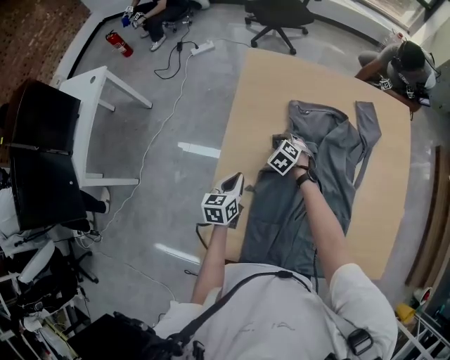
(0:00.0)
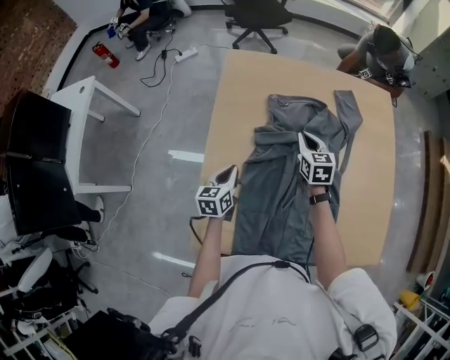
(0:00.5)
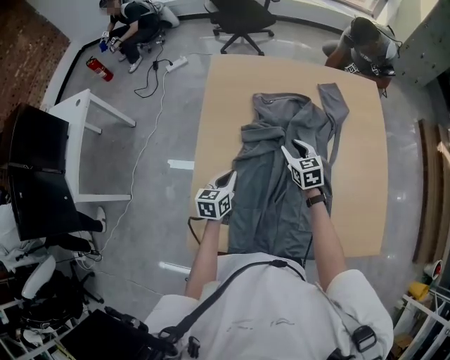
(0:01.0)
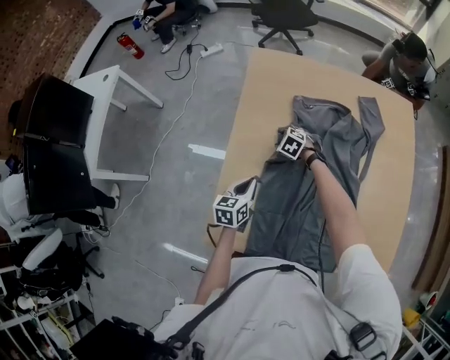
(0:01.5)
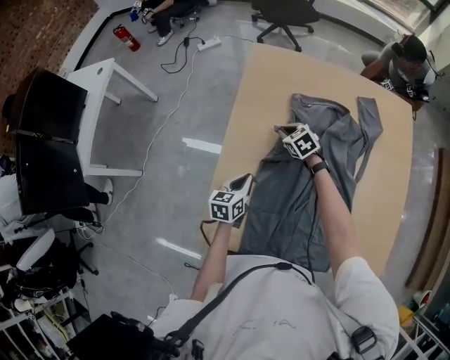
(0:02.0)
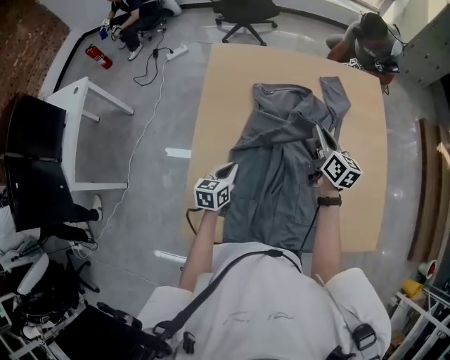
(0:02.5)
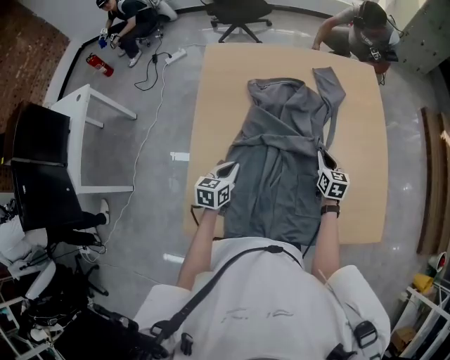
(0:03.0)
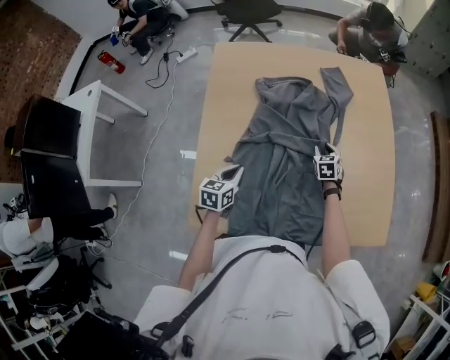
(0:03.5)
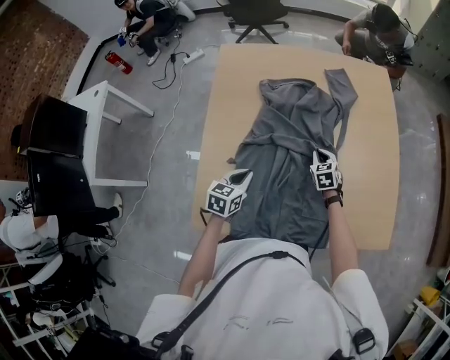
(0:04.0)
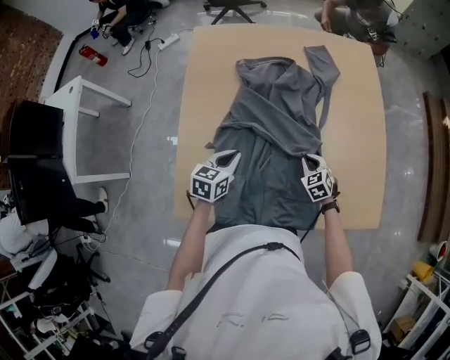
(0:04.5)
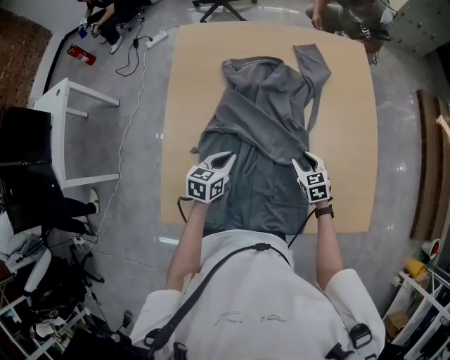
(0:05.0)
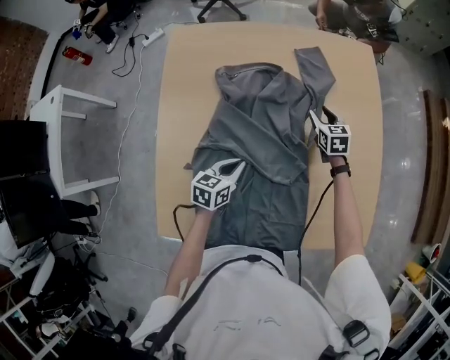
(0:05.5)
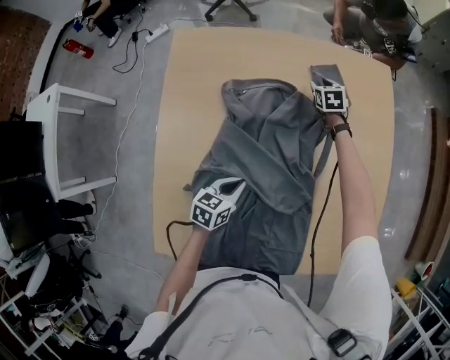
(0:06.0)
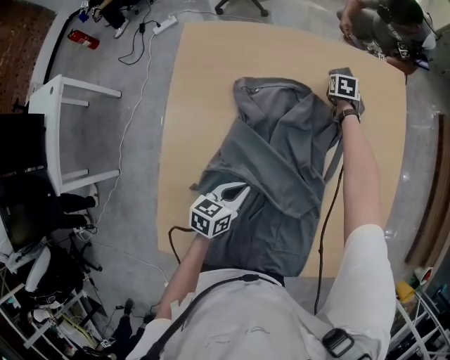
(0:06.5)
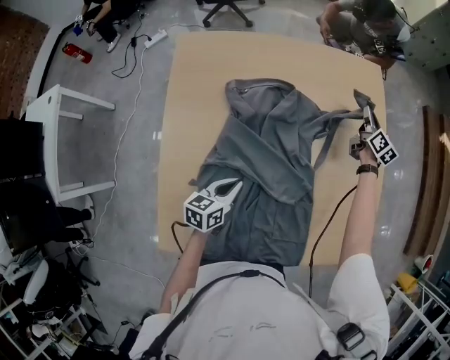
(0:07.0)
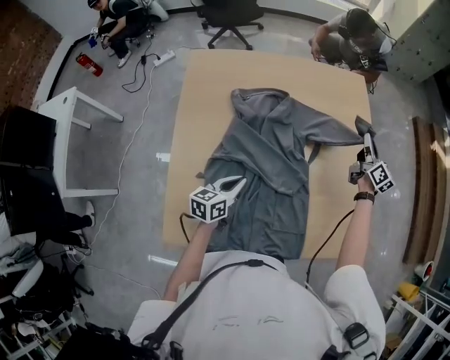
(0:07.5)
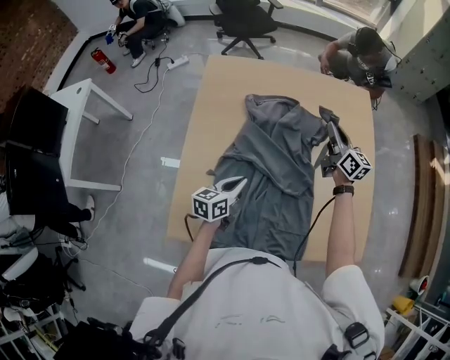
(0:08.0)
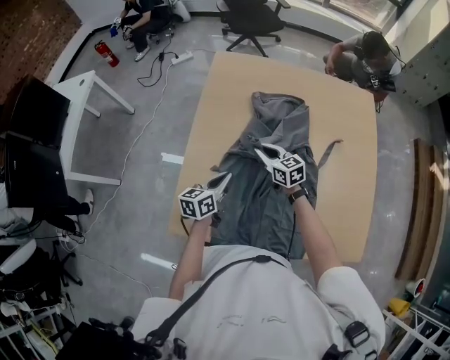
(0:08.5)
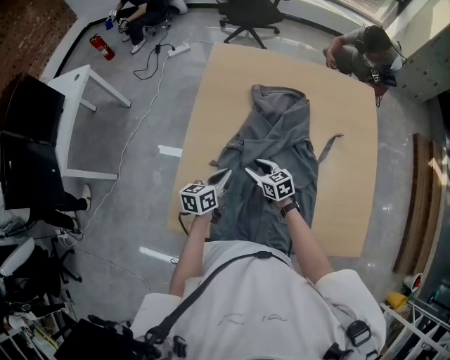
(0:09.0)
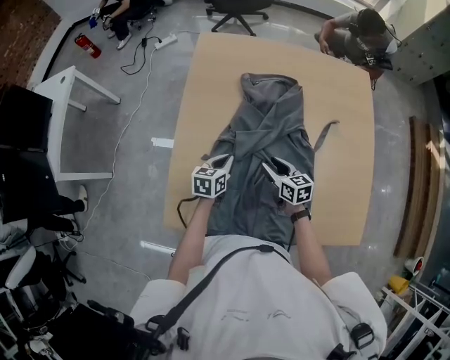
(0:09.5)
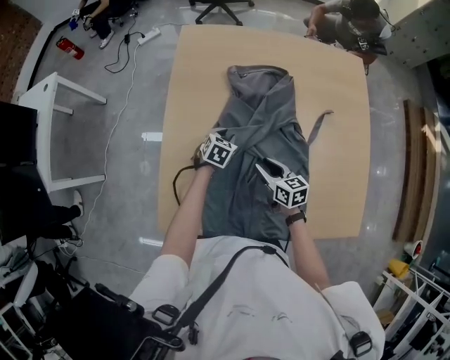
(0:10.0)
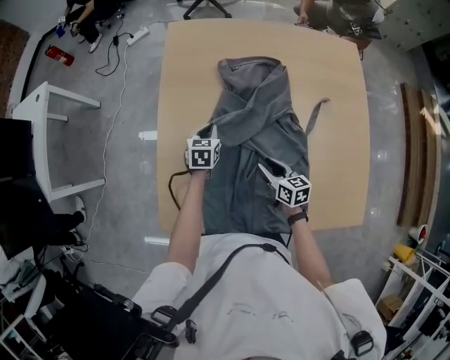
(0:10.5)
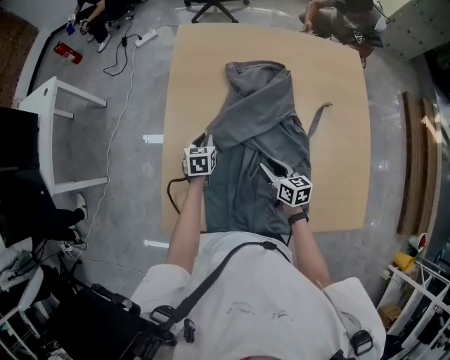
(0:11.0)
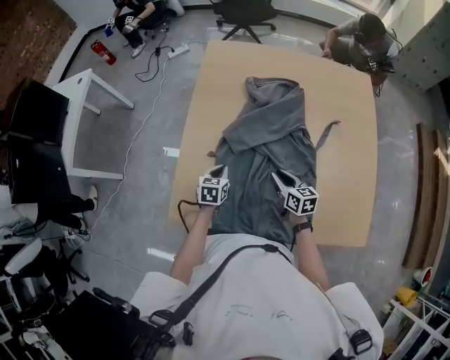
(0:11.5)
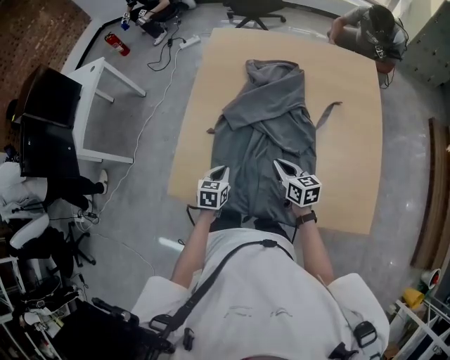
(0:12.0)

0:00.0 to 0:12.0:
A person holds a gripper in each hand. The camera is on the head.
0:00.0 to 0:02.0: The right gripper moves up and down over roughly 20 cm, changing direction 2 times, turns by roughly 20 degrees, and closes.
0:02.0 to 0:04.0: The left gripper shifts by roughly 15 cm, and turns by some 20 degrees, while the right gripper moves some 20 cm upward and comes back, and turns by approximately 30 degrees.
0:04.0 to 0:06.0: The right gripper heads forward, covering roughly 35 cm, and opens. The left gripper moves forward, to the right and downward, roughly 15 cm.
0:06.0 to 0:08.0: The right gripper travels upward and backward by approximately 35 cm, tips its fingers upward by approximately 50 degrees, and closes, while the left gripper moves upward and backward, roughly 15 cm, and swivels approximately 20 degrees.
0:08.0 to 0:10.0: The left gripper moves downward and forward, about 20 cm, angles its fingers downward, by about 30 degrees, and opens up. Meanwhile the right gripper heads downward, backward and to the left, covering some 35 cm, swivels about 40 degrees, and opens its fingers.
0:10.0 to 0:12.0: The right gripper heads backward, covering roughly 10 cm, and closes; the left gripper is displaced backward by approximately 25 cm, changes its angle by some 30 degrees, and closes up.

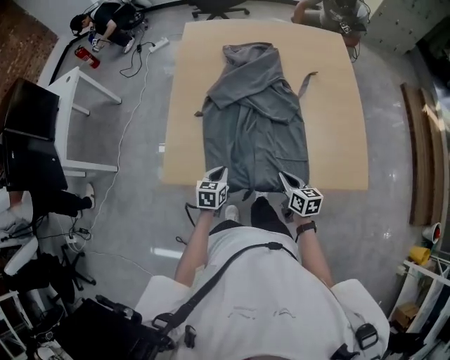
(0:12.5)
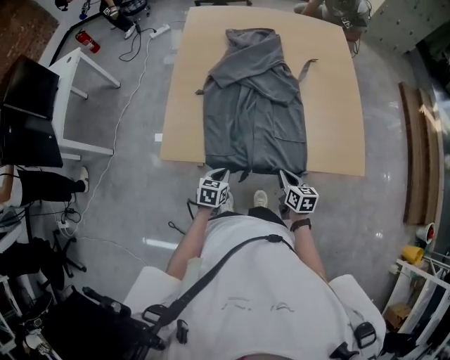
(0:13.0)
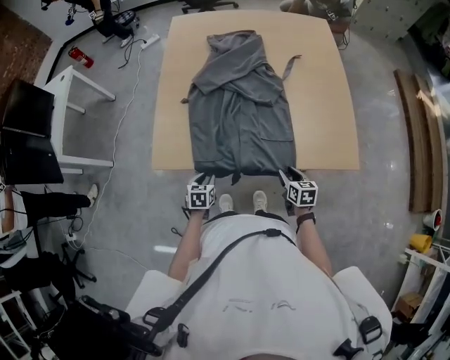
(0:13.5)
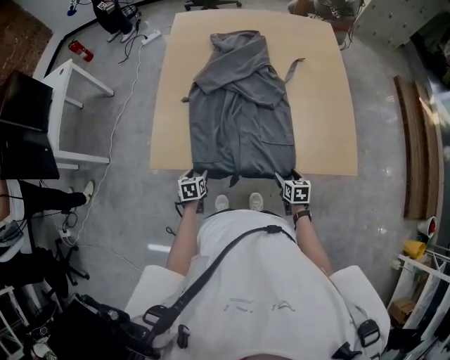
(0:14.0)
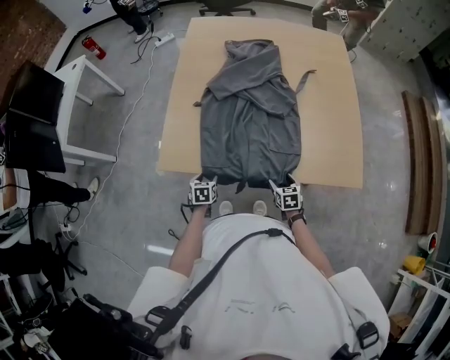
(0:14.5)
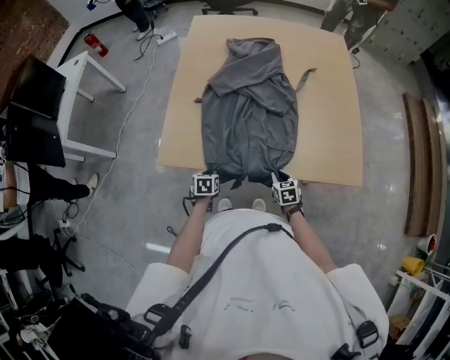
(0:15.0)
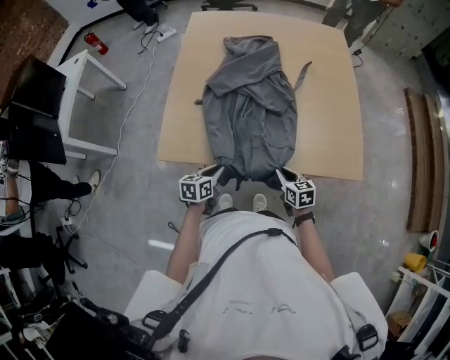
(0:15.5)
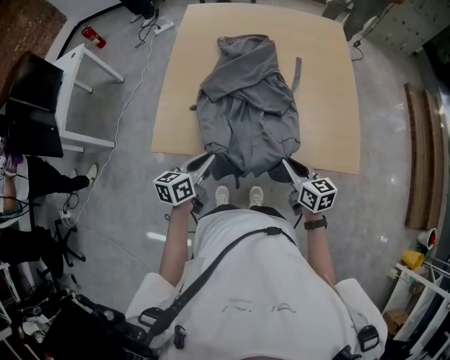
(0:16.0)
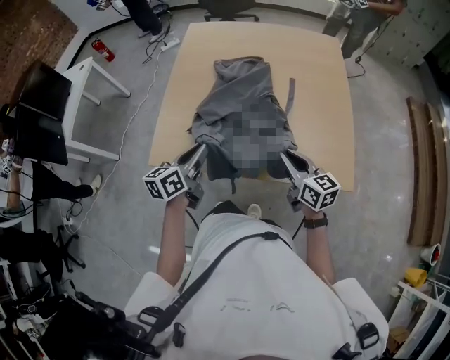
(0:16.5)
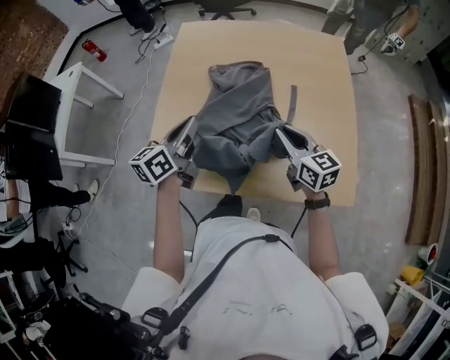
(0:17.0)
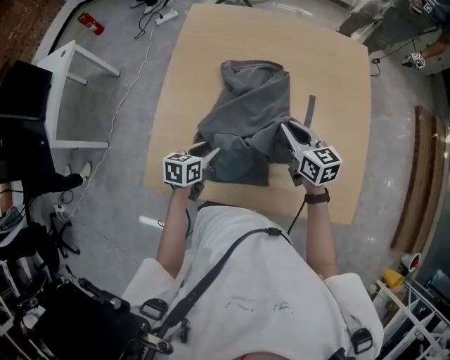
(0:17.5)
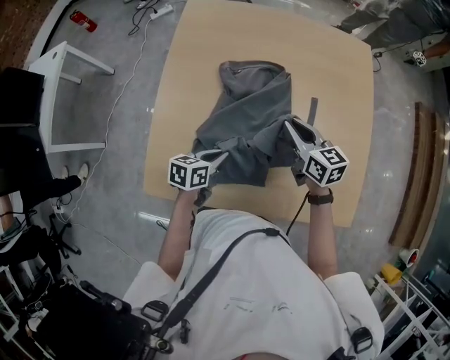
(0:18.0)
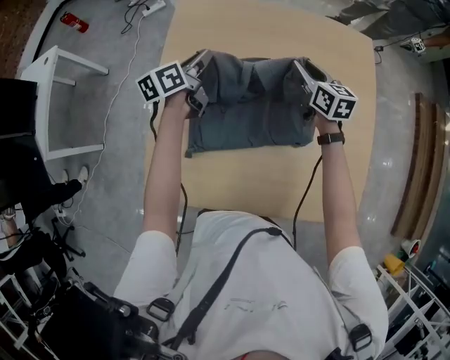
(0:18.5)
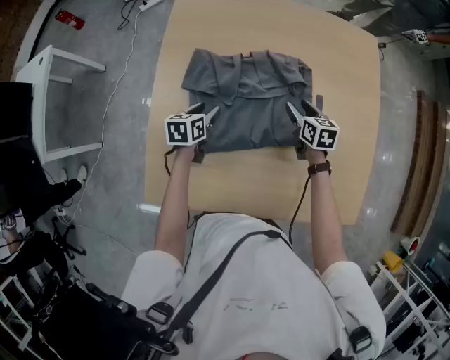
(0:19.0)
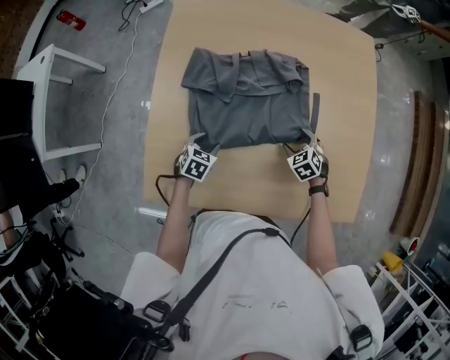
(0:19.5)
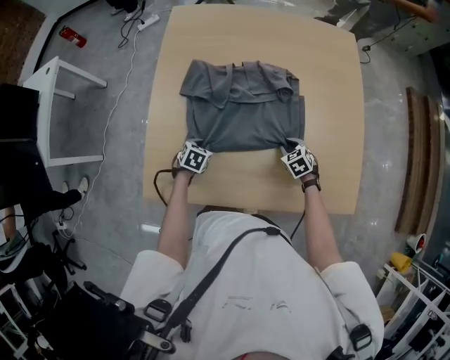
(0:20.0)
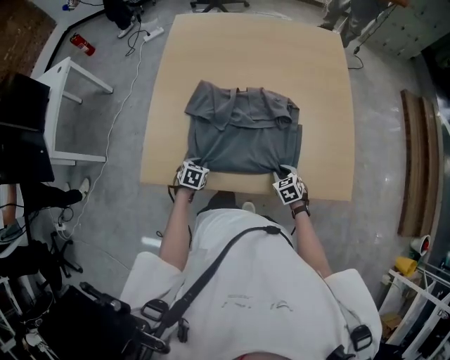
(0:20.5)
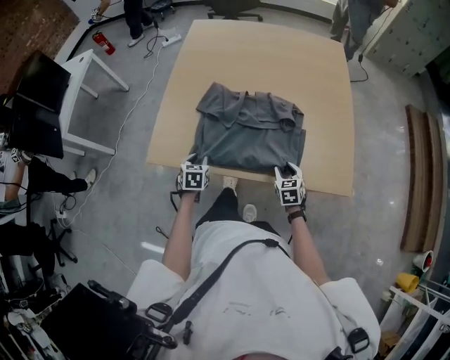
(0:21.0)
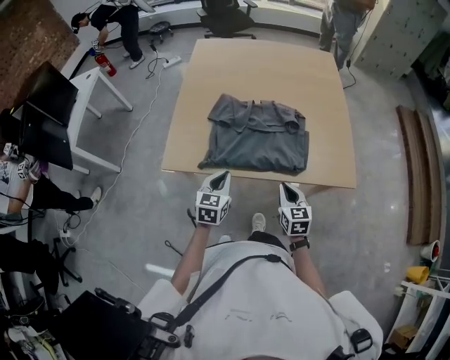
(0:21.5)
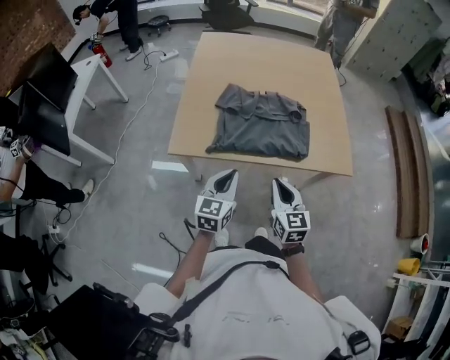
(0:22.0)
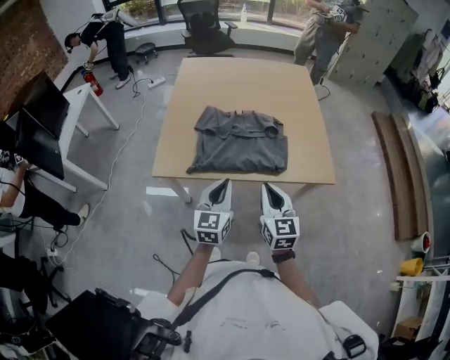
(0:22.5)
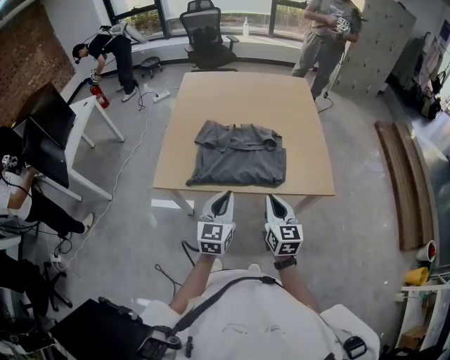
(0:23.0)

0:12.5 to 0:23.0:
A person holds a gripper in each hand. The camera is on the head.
0:12.5 to 0:14.5: The right gripper moves downward, approximately 10 cm, turns by approximately 30 degrees, and opens. Meanwhile the left gripper heads downward, backward and to the left, covering approximately 15 cm, and opens up.
0:14.5 to 0:16.5: The grippers both shift upward by some 30 cm. The left gripper tilts its fingers roughly 40 degrees upward, and closes its fingers; the right gripper tips its fingers upward by roughly 40 degrees, and closes its fingers.
0:16.5 to 0:19.0: The grippers both shift forward and downward by about 40 cm. The left gripper rotates approximately 30 degrees, and opens up; the right gripper rotates approximately 30 degrees, and opens.
0:19.0 to 0:21.0: The two grippers go approximately 35 cm backward. The left gripper rotates roughly 30 degrees, and closes its fingers. The right gripper changes its angle by approximately 20 degrees.
0:21.0 to 0:23.0: The left gripper travels upward, backward and to the right by about 35 cm, angles its fingers upward, by roughly 40 degrees, and closes up; the right gripper moves upward and backward, roughly 30 cm, points its fingers about 30 degrees further upward, and closes.

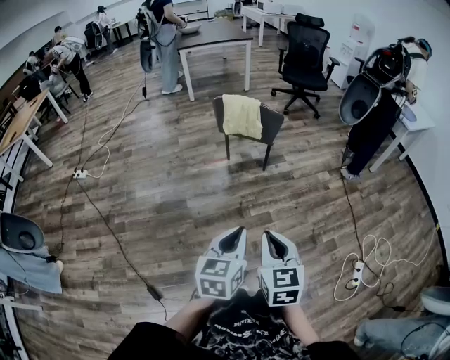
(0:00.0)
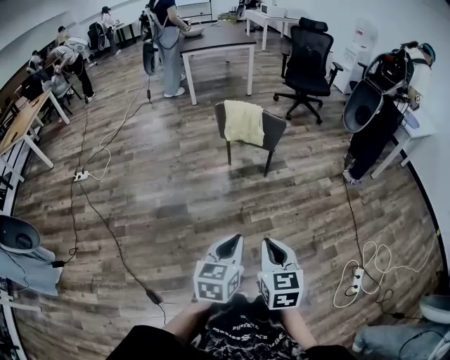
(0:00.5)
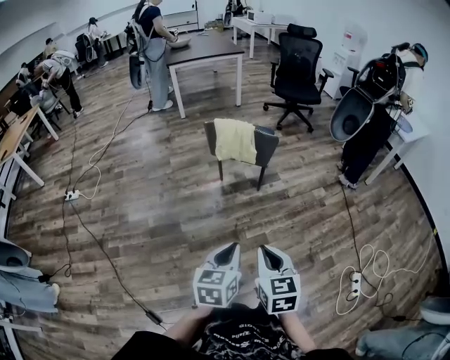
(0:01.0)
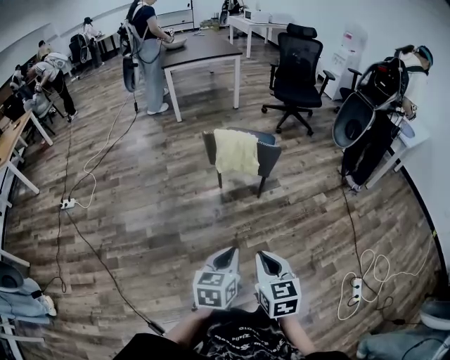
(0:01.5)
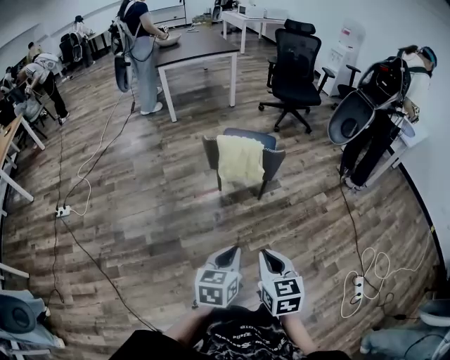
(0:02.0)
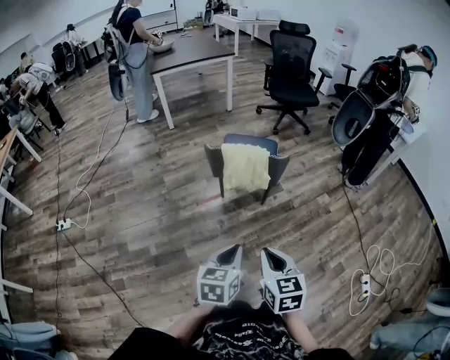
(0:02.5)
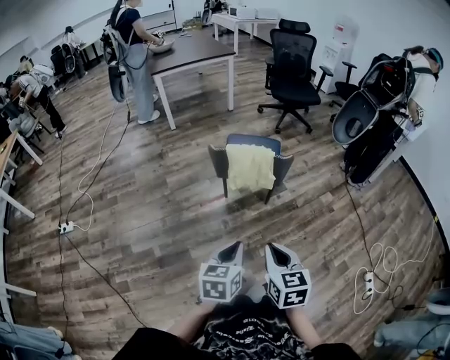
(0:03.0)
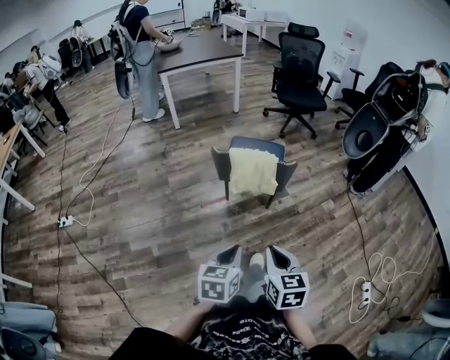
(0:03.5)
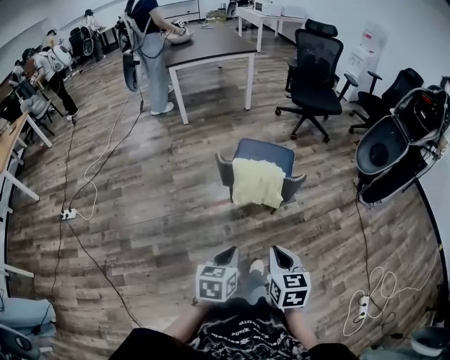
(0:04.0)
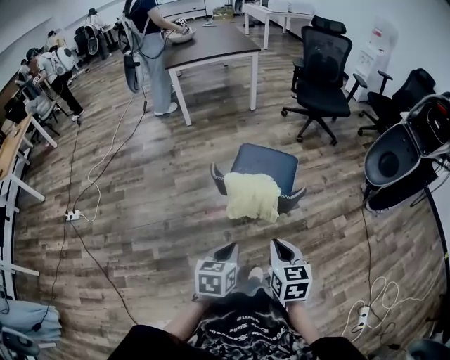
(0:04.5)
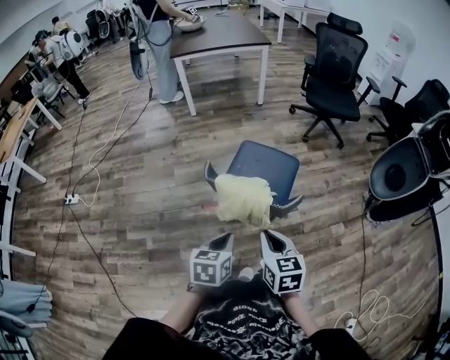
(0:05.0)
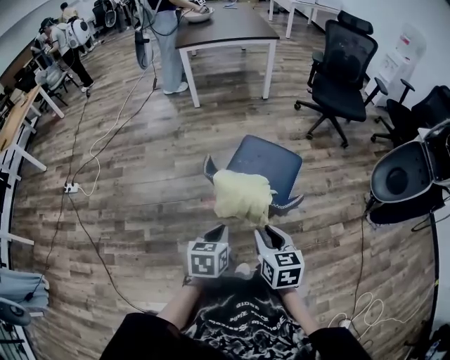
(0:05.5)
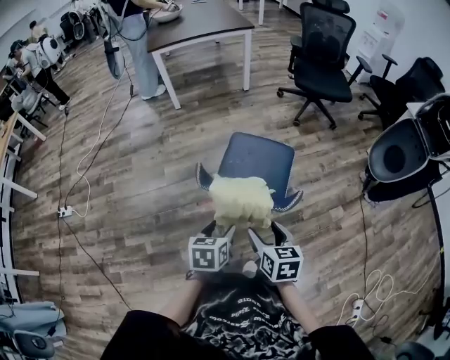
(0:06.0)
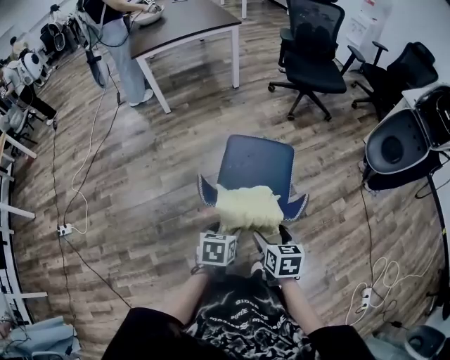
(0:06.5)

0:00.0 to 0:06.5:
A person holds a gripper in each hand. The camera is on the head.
0:00.0 to 0:02.0: The two grippers go approximately 20 cm forward.
0:02.0 to 0:04.5: Both grippers move forward, about 25 cm.
0:04.5 to 0:06.5: The grippers both shift forward and downward by approximately 20 cm. The left gripper opens up. The right gripper opens.
